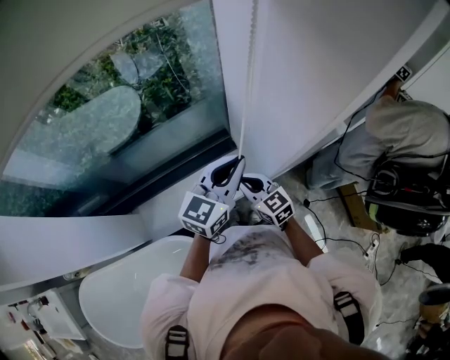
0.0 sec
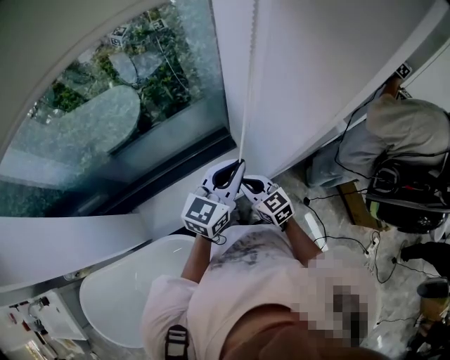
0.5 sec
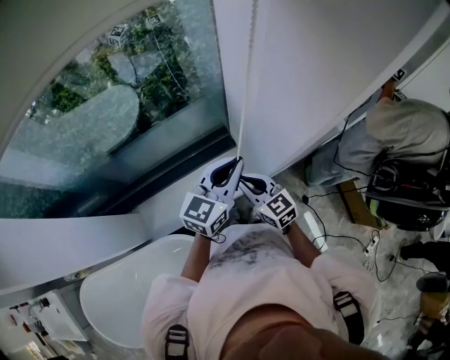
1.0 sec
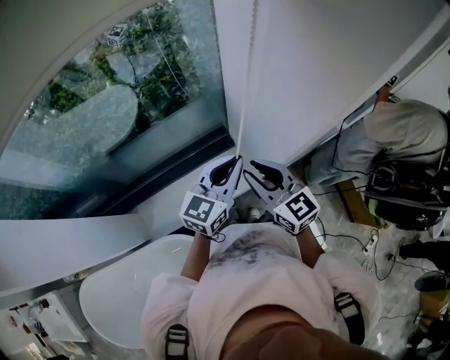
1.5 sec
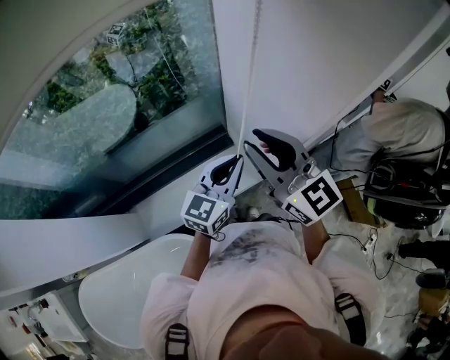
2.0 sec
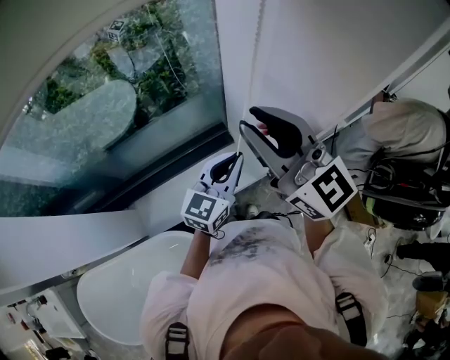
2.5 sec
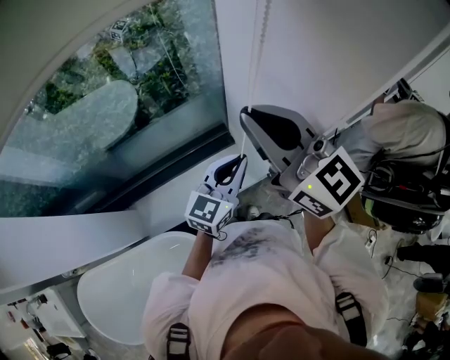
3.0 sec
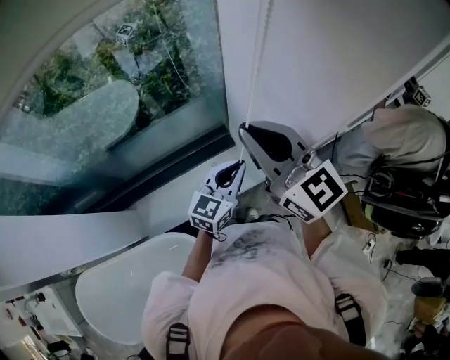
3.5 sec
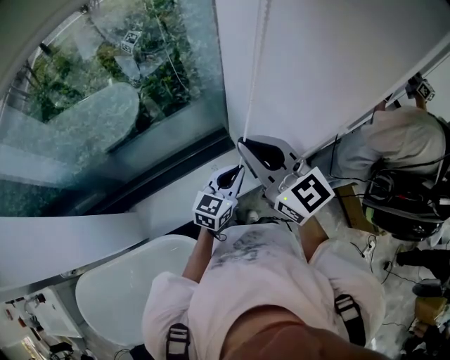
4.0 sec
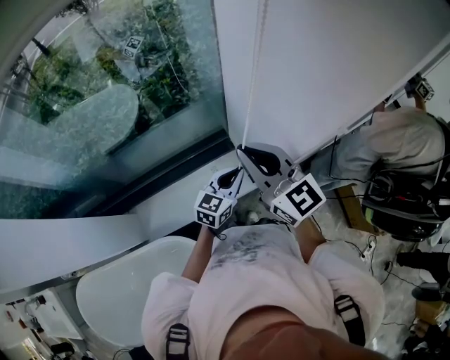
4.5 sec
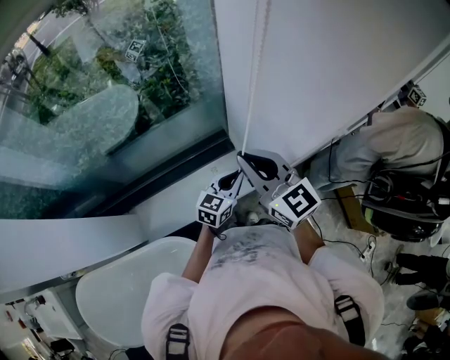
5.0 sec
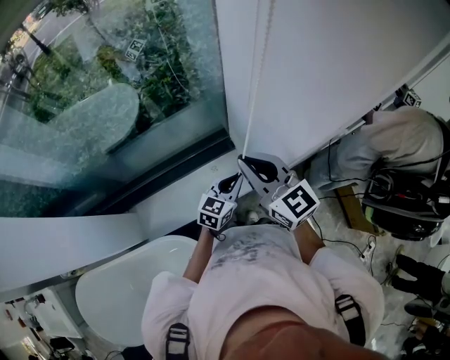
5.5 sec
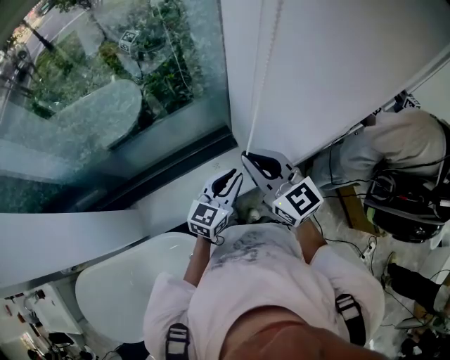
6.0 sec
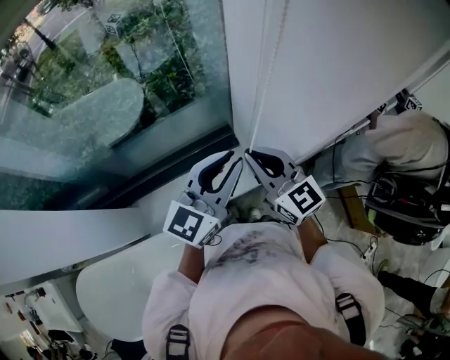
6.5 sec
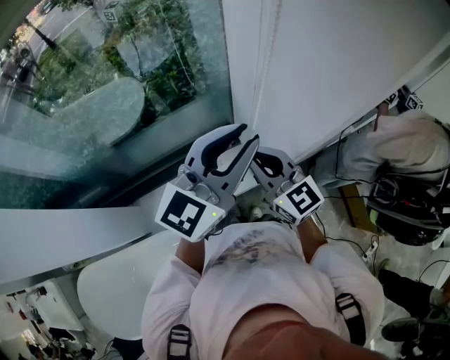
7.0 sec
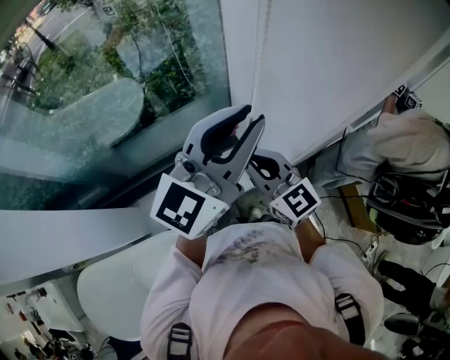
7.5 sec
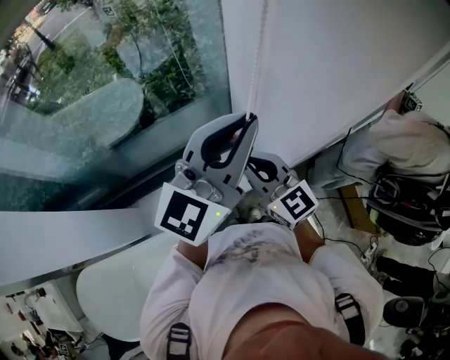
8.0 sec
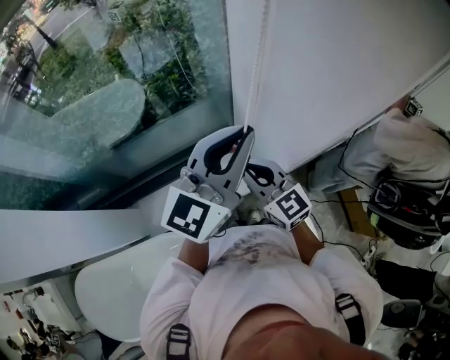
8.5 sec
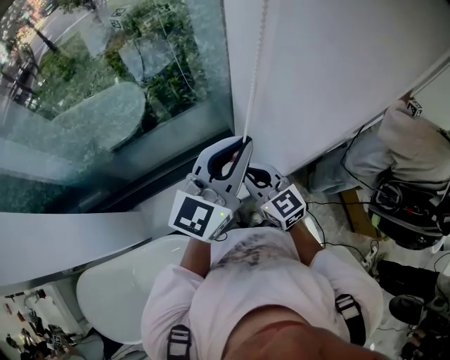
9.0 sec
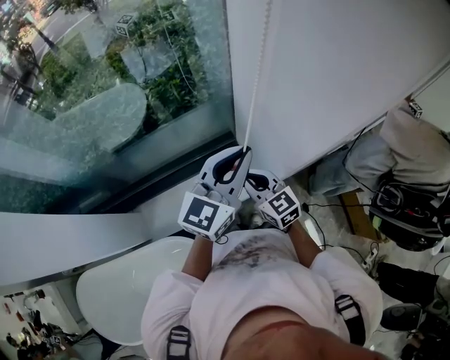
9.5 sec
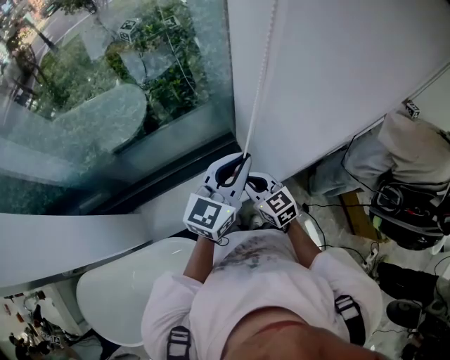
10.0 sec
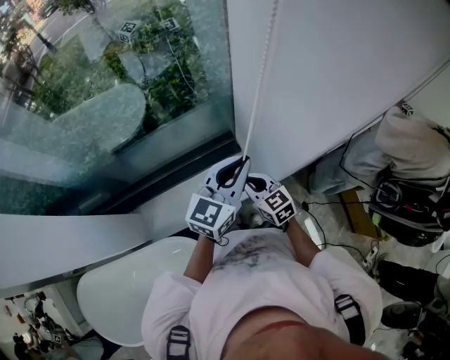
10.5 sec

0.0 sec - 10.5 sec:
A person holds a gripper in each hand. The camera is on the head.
0.0 sec - 2.0 sec: The right gripper moves upward, about 25 cm, changes its angle by roughly 20 degrees, and opens up.
2.0 sec - 4.0 sec: The left gripper heads downward, covering some 10 cm; the right gripper moves roughly 10 cm upward and comes back, and closes up.
4.0 sec - 6.5 sec: The right gripper shifts about 5 cm downward; the left gripper goes some 20 cm upward.
6.5 sec - 8.5 sec: The left gripper goes approximately 10 cm upward.
8.5 sec - 10.5 sec: The two grippers go about 15 cm downward.

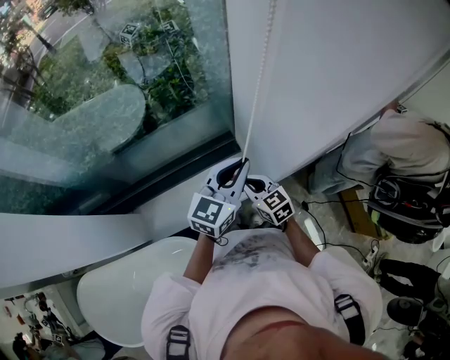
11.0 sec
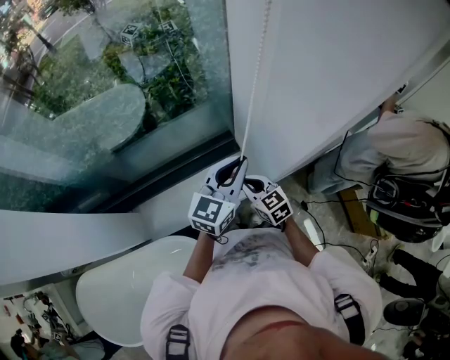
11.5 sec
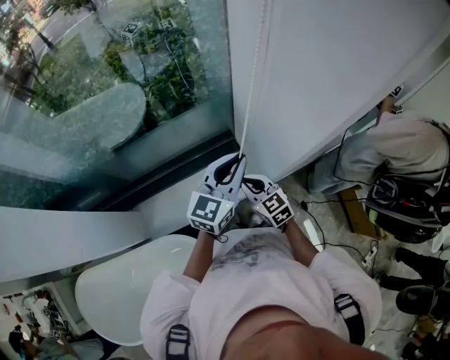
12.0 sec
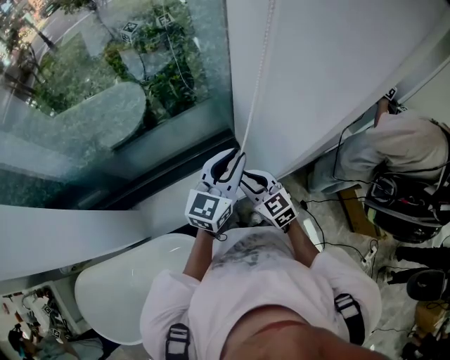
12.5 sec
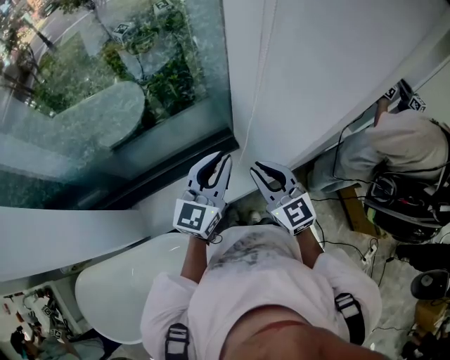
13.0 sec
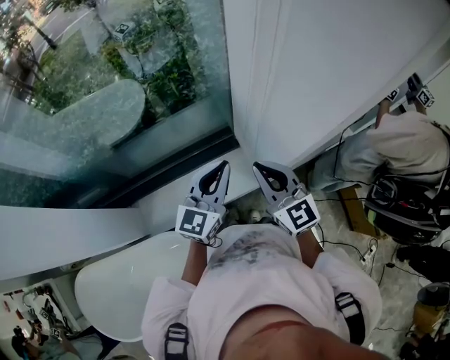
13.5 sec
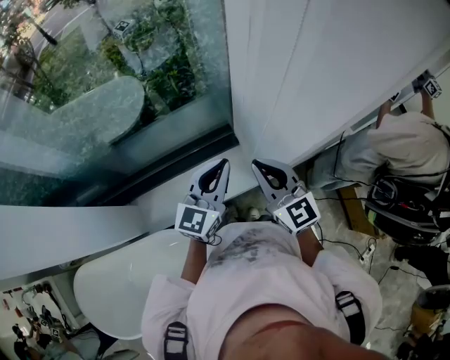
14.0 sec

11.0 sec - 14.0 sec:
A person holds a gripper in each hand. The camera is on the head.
11.0 sec - 12.5 sec: The grippers stay close to where they were, moving slightly.
12.5 sec - 14.0 sec: The right gripper moves upward, roughly 15 cm.

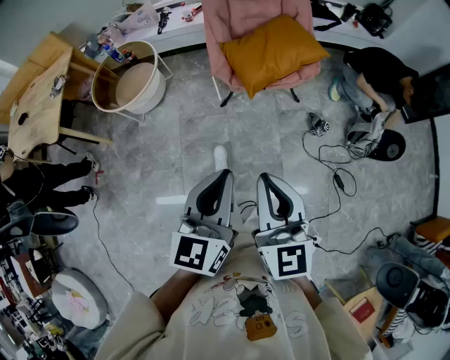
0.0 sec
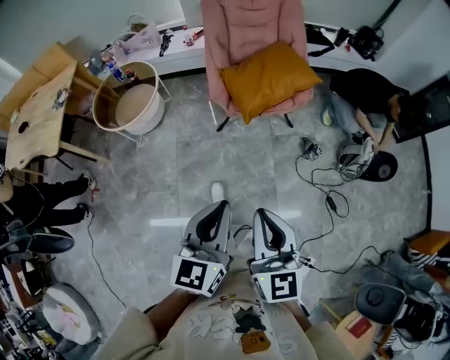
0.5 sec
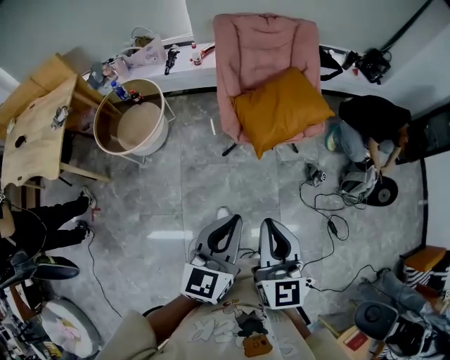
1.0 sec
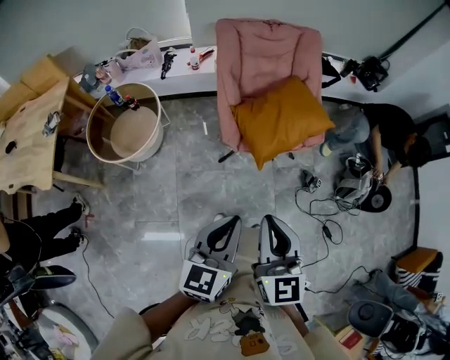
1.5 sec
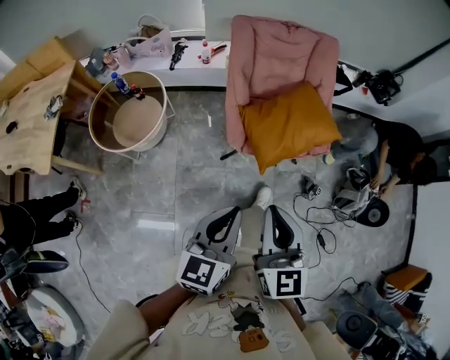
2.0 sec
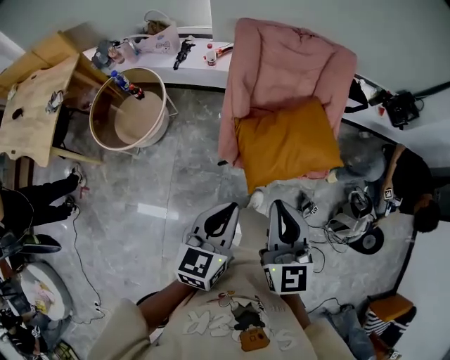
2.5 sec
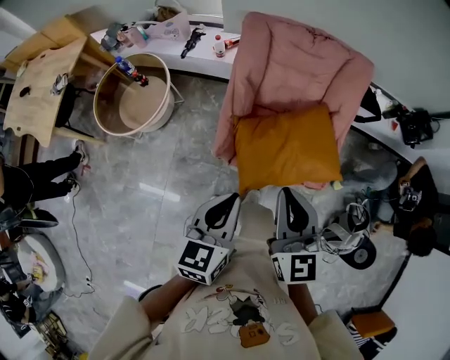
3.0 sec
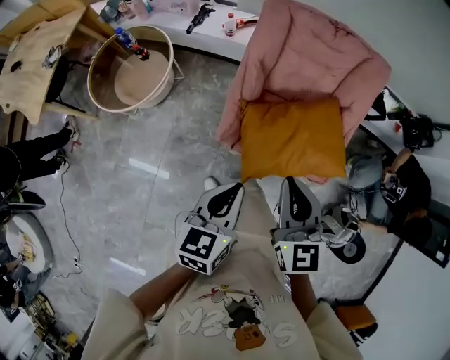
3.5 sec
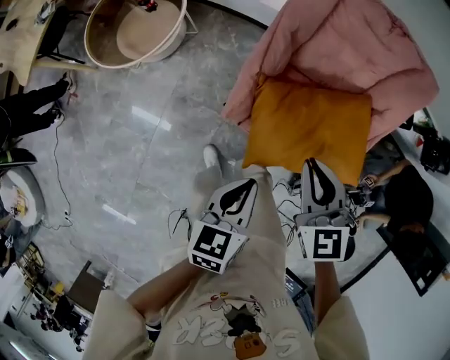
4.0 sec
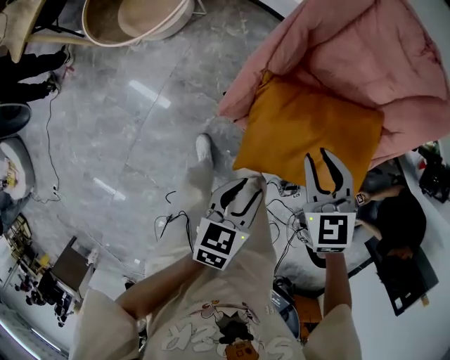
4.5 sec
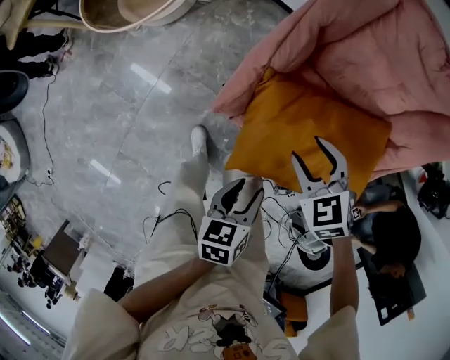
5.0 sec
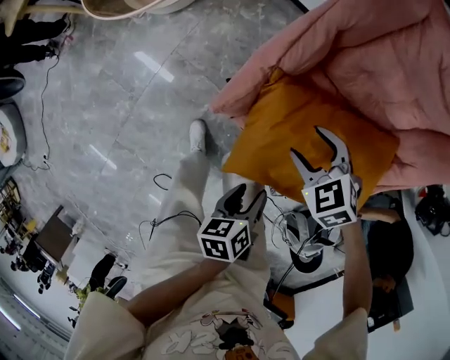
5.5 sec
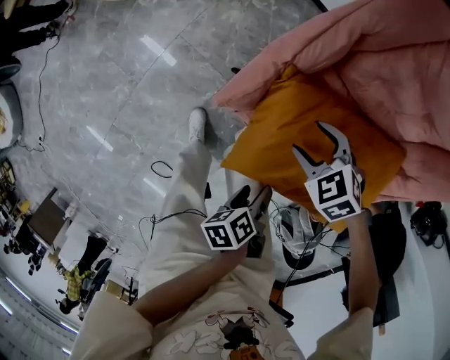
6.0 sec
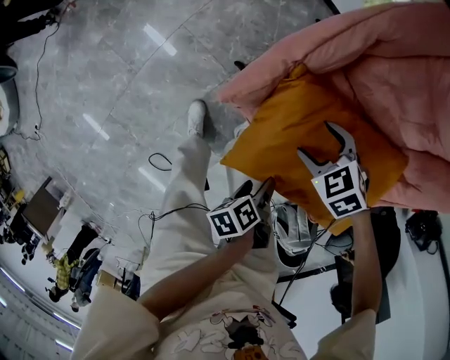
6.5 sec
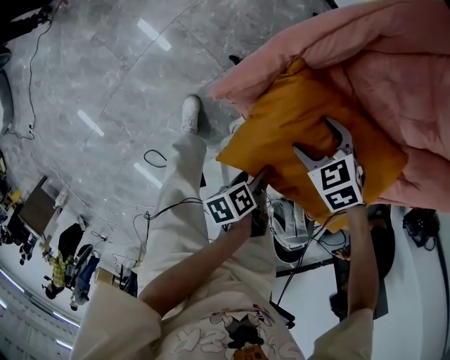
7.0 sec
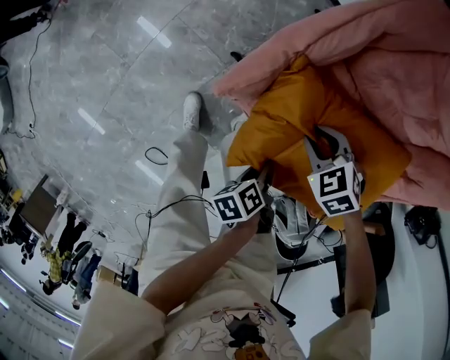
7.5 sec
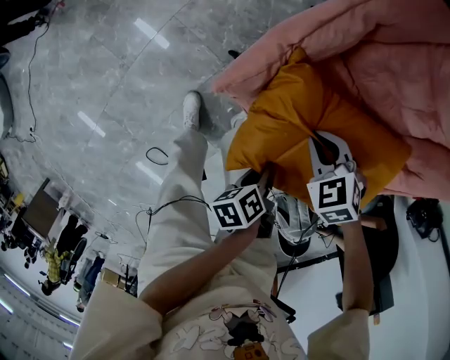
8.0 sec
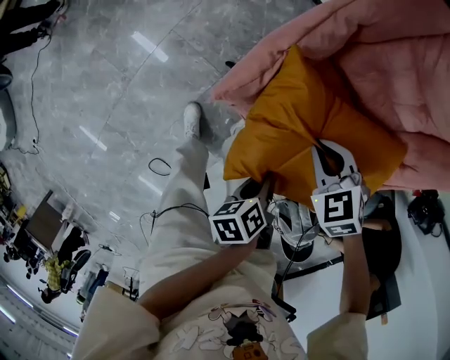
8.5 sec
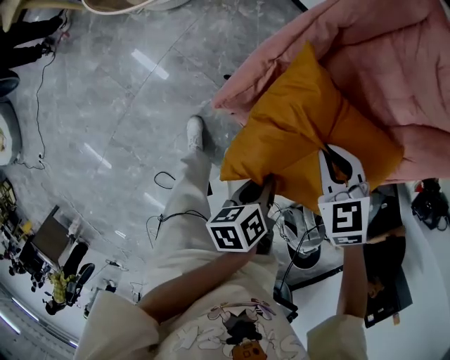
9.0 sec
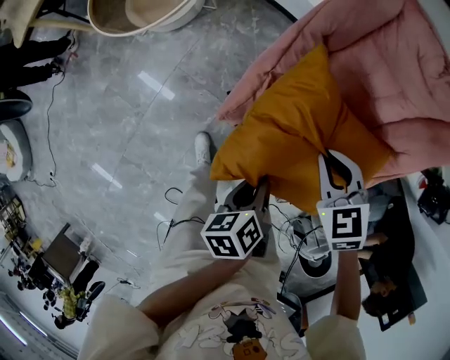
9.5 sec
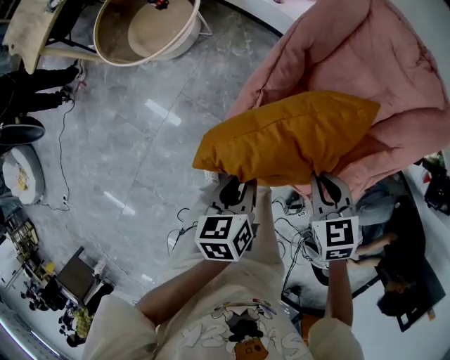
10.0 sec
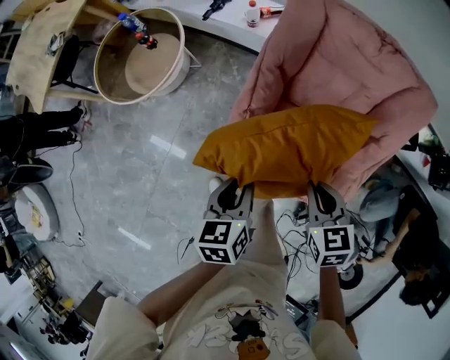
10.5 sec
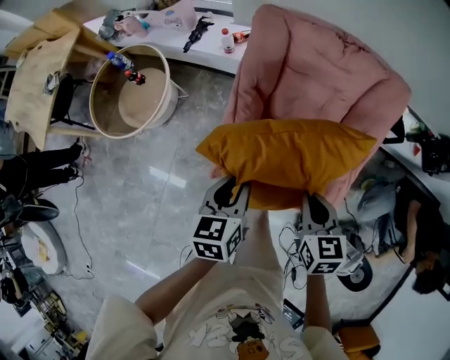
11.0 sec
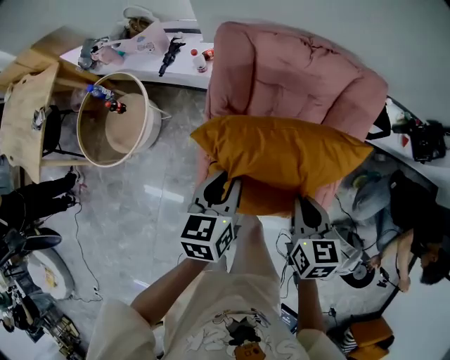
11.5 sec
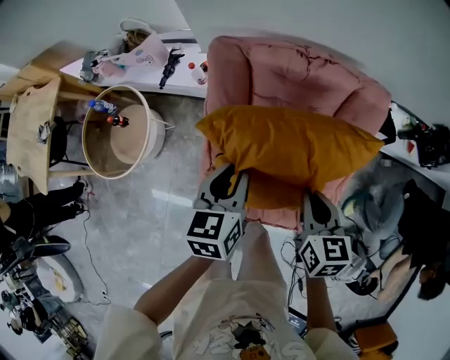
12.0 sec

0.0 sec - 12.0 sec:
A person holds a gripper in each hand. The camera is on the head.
0.0 sec - 2.0 sec: Both grippers travel together forward and to the left, some 25 cm.
2.0 sec - 4.0 sec: The right gripper ends up about 40 cm from where it was, and turns by about 40 degrees. Meanwhile the left gripper changes place by some 35 cm, and turns by some 40 degrees.
4.0 sec - 6.0 sec: Both grippers move downward, roughly 25 cm. The right gripper tips its fingers downward by approximately 30 degrees, and opens its fingers; the left gripper rolls counterclockwise, seen from behind, by roughly 70 degrees, and opens its fingers.
6.0 sec - 8.0 sec: The left gripper closes, while the right gripper closes up.
8.0 sec - 10.0 sec: The right gripper shifts about 15 cm upward, and swivels some 40 degrees. The left gripper shifts about 20 cm upward, forward and to the left, and rolls clockwise, seen from behind, by roughly 50 degrees.
10.0 sec - 12.0 sec: The right gripper moves approximately 20 cm, and rotates roughly 50 degrees. The left gripper shifts by roughly 30 cm, and changes its angle by approximately 40 degrees.

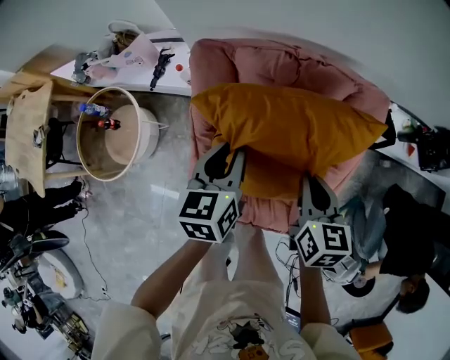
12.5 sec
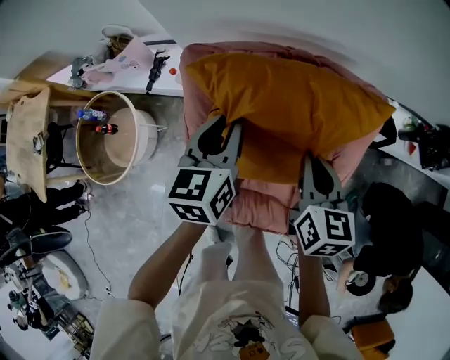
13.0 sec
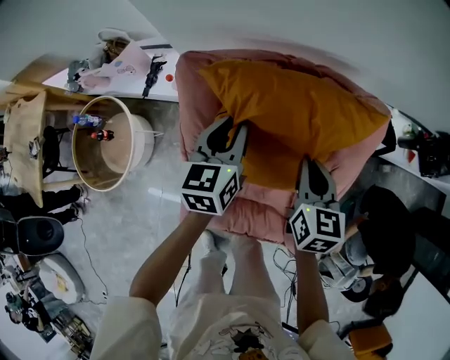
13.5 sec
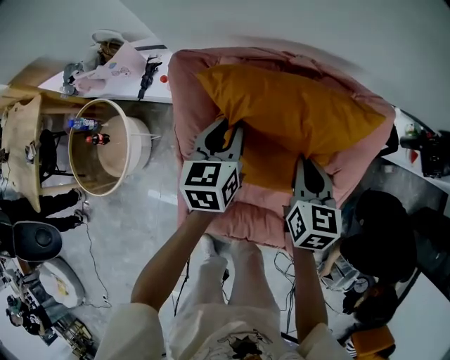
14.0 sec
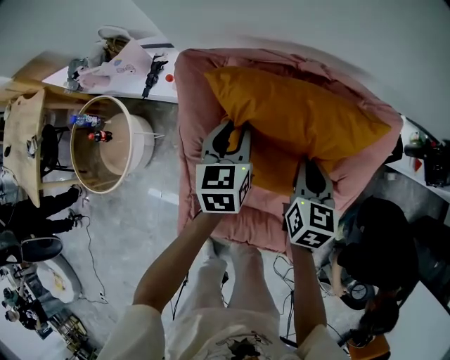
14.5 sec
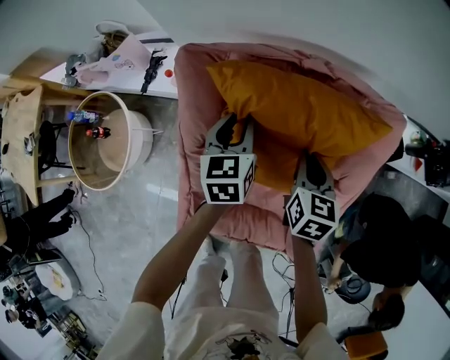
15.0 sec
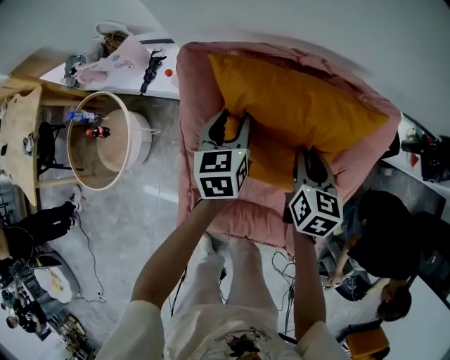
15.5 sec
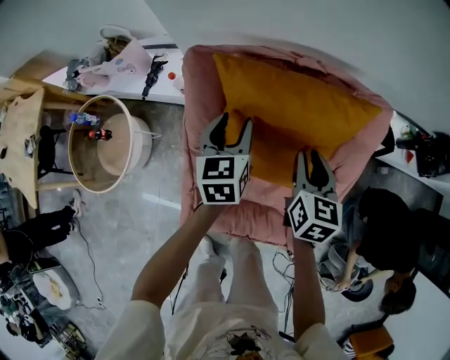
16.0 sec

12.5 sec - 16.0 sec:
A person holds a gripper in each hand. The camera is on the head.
12.5 sec - 14.5 sec: Both grippers move forward and downward, roughly 15 cm.
14.5 sec - 16.0 sec: The right gripper shifts by approximately 5 cm.
